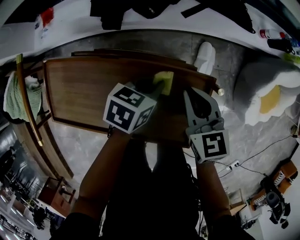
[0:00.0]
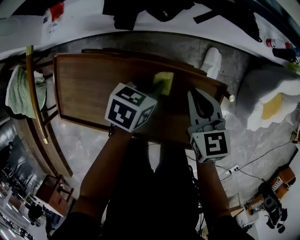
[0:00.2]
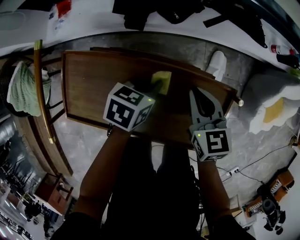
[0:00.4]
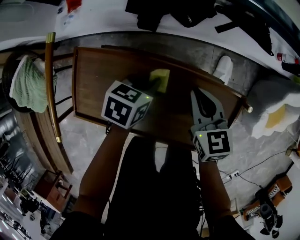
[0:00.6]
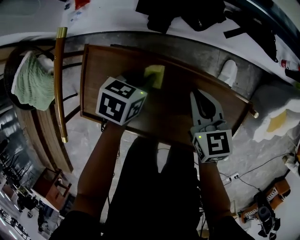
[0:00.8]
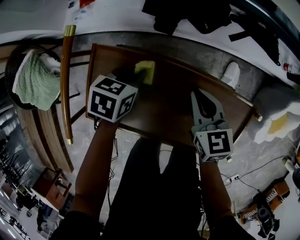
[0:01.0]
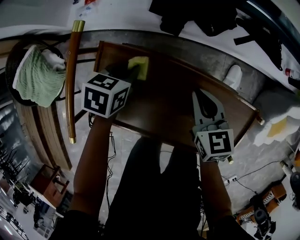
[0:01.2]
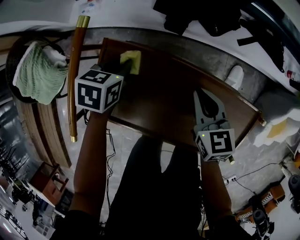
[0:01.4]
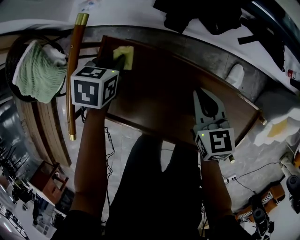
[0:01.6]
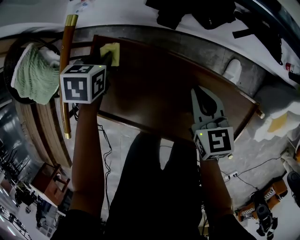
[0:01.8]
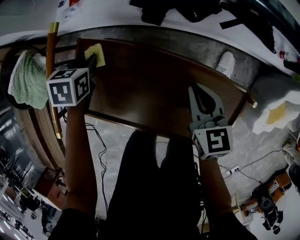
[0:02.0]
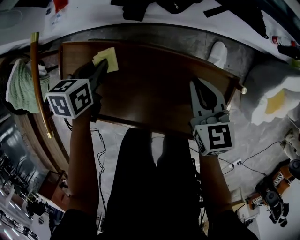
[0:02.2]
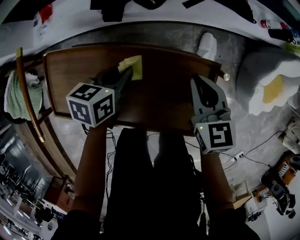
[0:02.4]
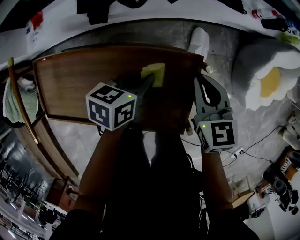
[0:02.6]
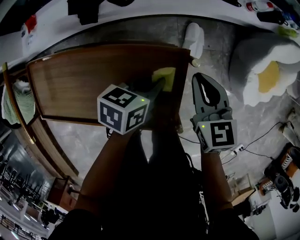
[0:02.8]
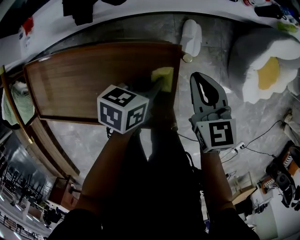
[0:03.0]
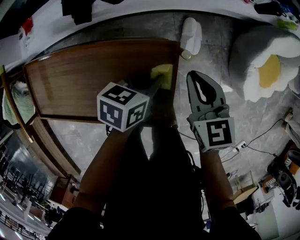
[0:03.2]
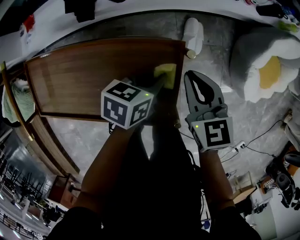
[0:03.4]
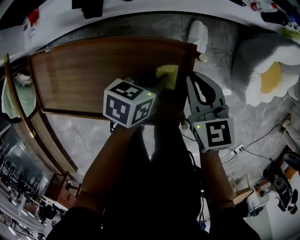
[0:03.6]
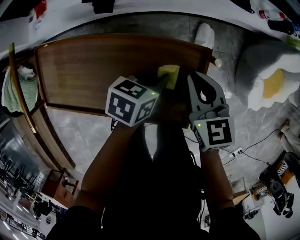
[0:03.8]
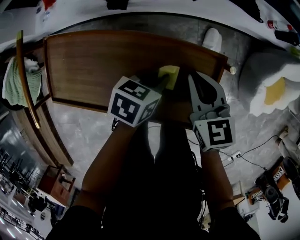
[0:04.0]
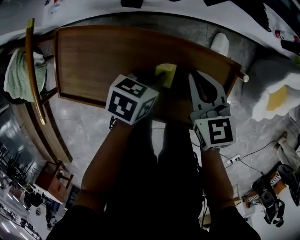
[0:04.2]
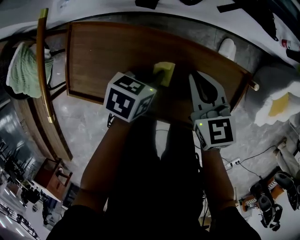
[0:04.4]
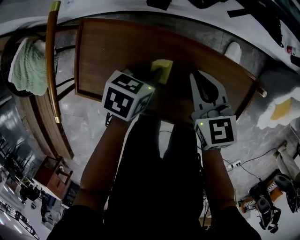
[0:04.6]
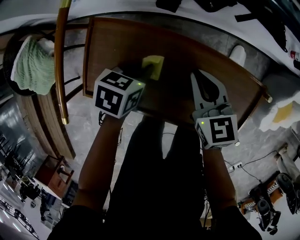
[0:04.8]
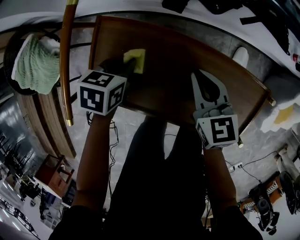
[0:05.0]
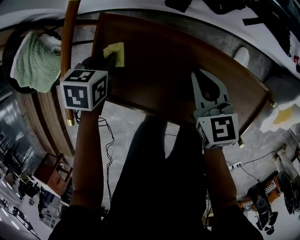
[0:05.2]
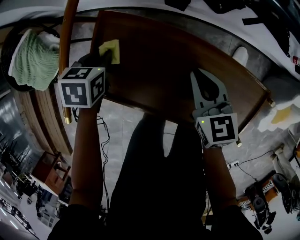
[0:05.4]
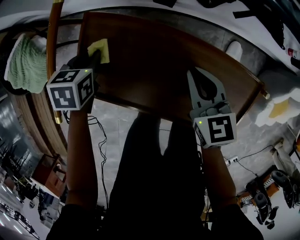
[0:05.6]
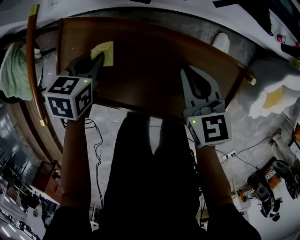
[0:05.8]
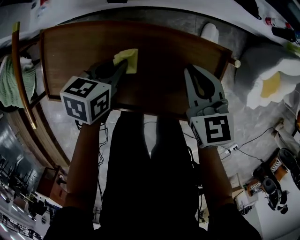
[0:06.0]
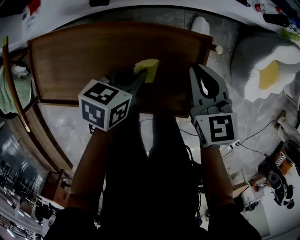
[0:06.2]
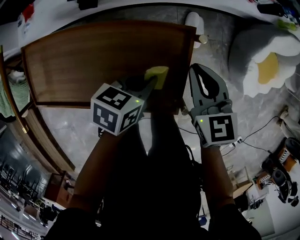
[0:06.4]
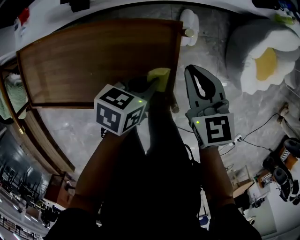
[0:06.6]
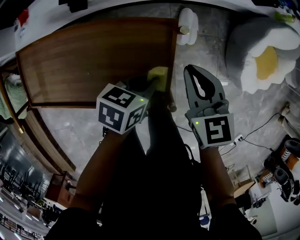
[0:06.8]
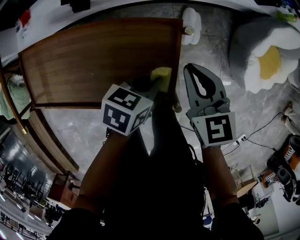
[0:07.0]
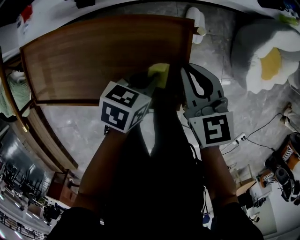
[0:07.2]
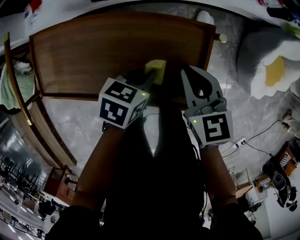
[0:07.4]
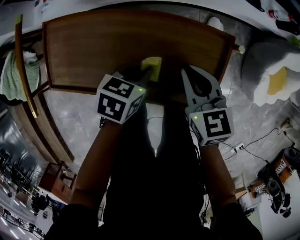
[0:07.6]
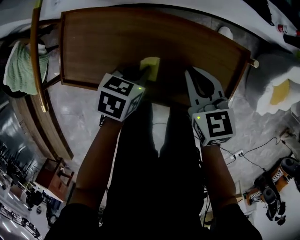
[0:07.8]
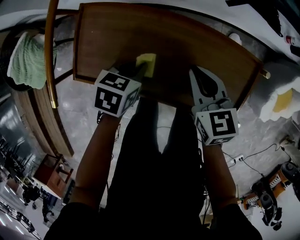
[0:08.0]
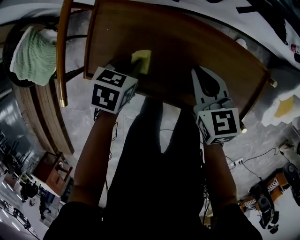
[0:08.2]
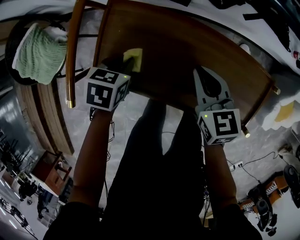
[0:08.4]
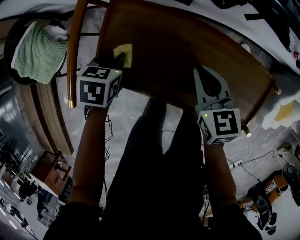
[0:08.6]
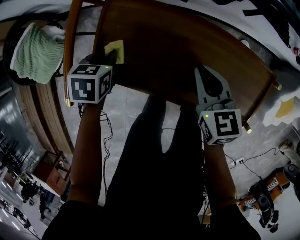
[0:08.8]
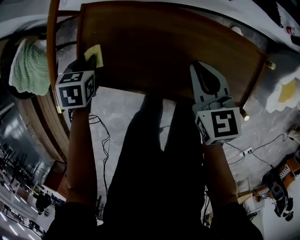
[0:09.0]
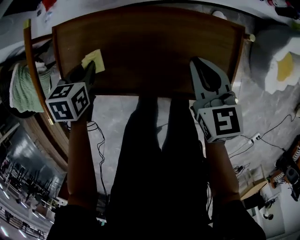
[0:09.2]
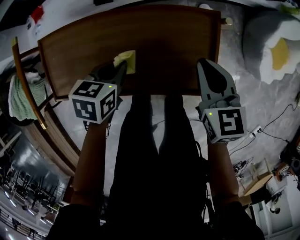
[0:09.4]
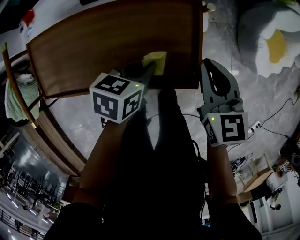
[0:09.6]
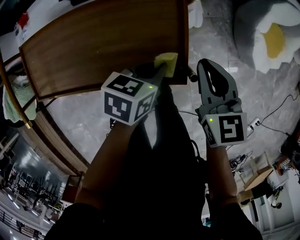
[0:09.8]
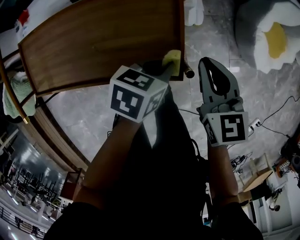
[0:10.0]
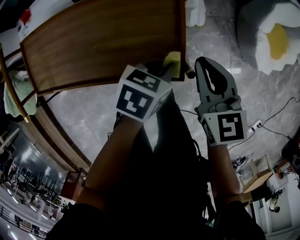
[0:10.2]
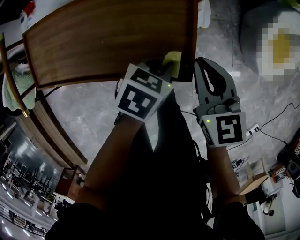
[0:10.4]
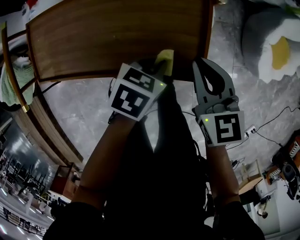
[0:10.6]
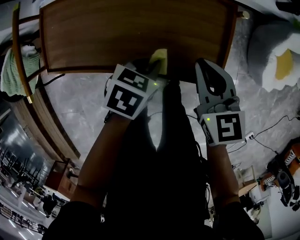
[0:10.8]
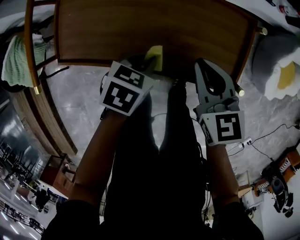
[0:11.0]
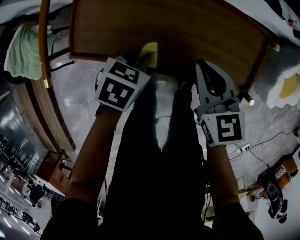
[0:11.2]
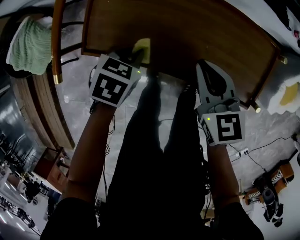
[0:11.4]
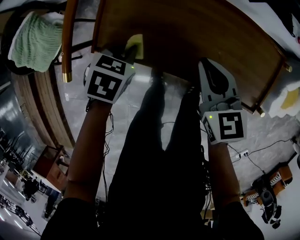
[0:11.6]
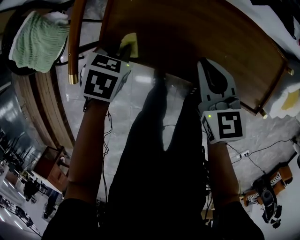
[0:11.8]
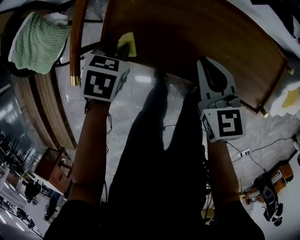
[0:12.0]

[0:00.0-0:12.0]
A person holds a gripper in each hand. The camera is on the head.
0:00.0 to 0:01.6: The right gripper travels to the left by about 20 cm; the left gripper is displaced to the left by approximately 40 cm, and changes its angle by about 30 degrees.
0:01.6 to 0:03.0: The left gripper moves about 50 cm, and swivels roughly 30 degrees. Meanwhile the right gripper changes place by about 35 cm.
0:03.0 to 0:04.4: The grippers both shift to the left by about 25 cm.
0:04.4 to 0:06.0: The right gripper reaches some 10 cm to the left, then returns. The left gripper travels to the left and back again, about 30 cm each way.
0:06.0 to 0:07.6: The left gripper reaches roughly 25 cm to the right, then returns. The right gripper goes to the right and returns, about 15 cm each way.
0:07.6 to 0:09.0: The left gripper changes place by about 35 cm, and turns by roughly 30 degrees; the right gripper ends up about 15 cm from where it was.
0:09.0 to 0:10.4: The left gripper shifts by some 50 cm, and turns by approximately 40 degrees. Meanwhile the right gripper moves some 25 cm.
0:10.4 to 0:12.0: The right gripper moves about 35 cm, while the left gripper changes place by approximately 50 cm, and changes its angle by approximately 30 degrees.

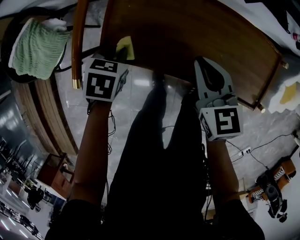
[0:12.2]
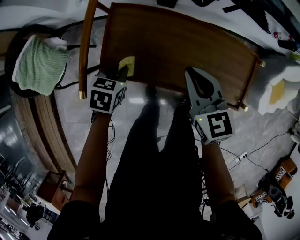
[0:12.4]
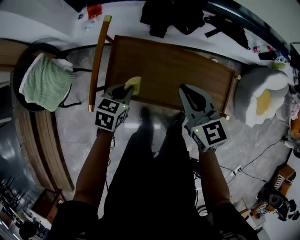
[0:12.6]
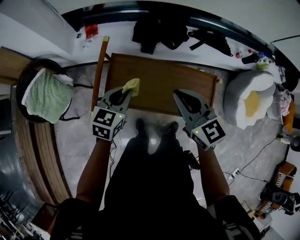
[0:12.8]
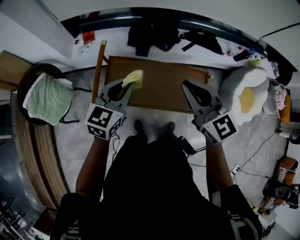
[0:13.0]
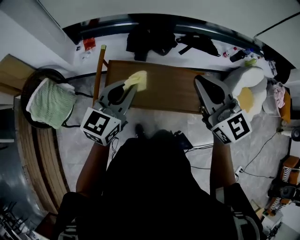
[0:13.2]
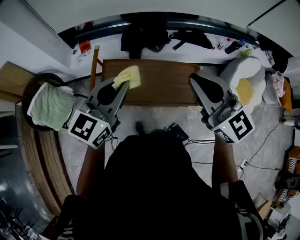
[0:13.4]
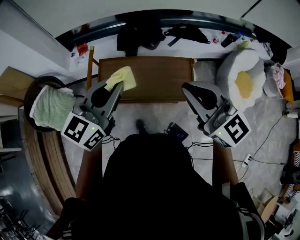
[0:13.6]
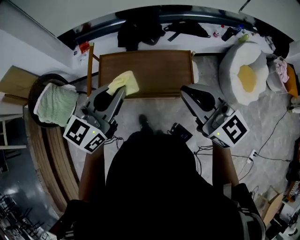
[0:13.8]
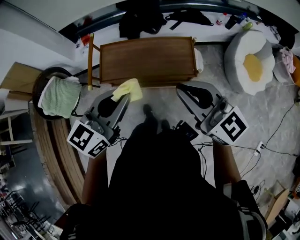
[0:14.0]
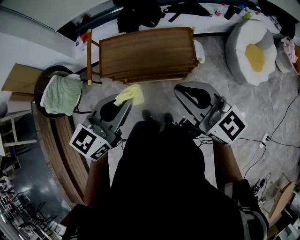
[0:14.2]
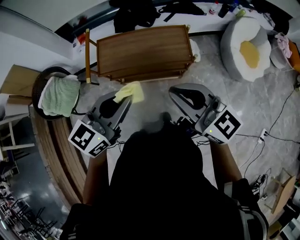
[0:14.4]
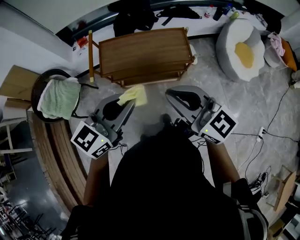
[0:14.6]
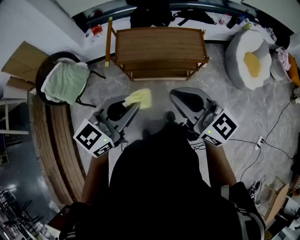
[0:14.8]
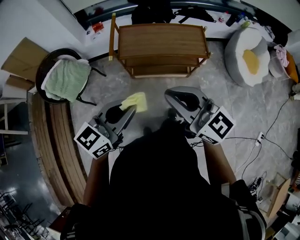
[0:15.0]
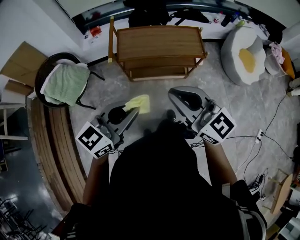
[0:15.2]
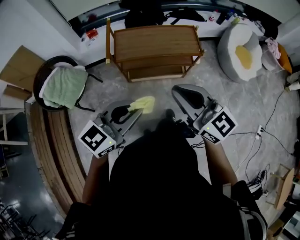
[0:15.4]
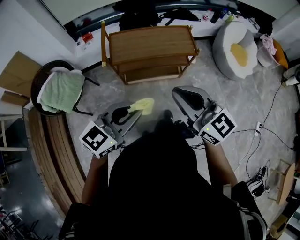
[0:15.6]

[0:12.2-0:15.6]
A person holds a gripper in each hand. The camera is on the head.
0:12.2 to 0:13.8: The right gripper goes some 40 cm upward and backward, and changes its angle by approximately 30 degrees, while the left gripper heads upward, covering some 50 cm, and points its fingers roughly 60 degrees further upward.
0:13.8 to 0:15.6: The right gripper shifts about 30 cm backward and to the left. Meanwhile the left gripper travels backward by about 30 cm, and rotates about 20 degrees.

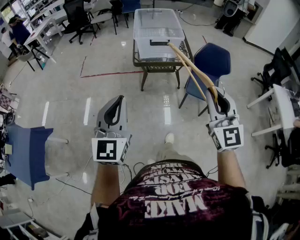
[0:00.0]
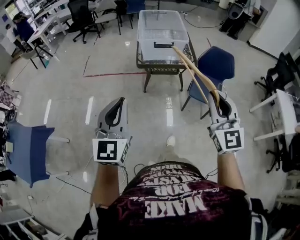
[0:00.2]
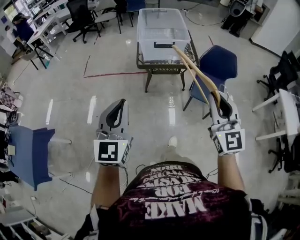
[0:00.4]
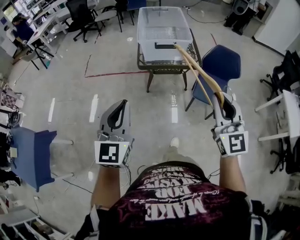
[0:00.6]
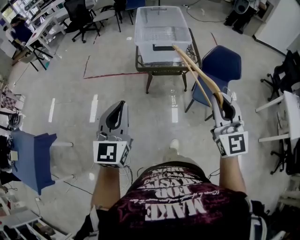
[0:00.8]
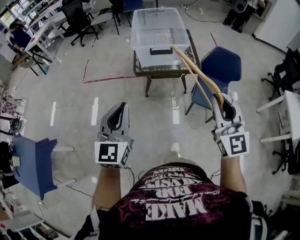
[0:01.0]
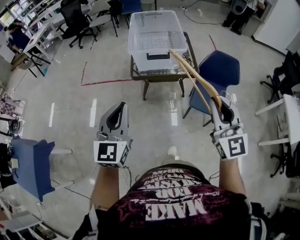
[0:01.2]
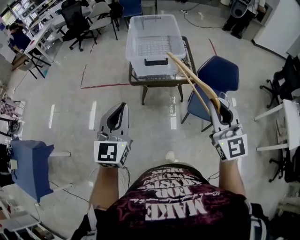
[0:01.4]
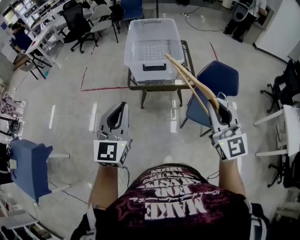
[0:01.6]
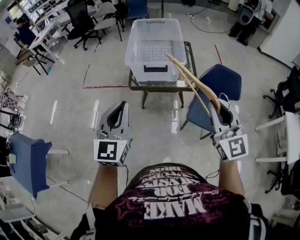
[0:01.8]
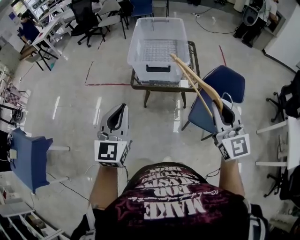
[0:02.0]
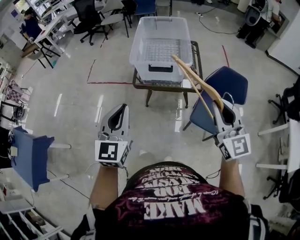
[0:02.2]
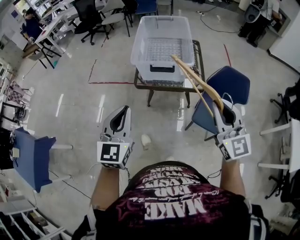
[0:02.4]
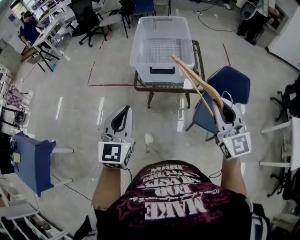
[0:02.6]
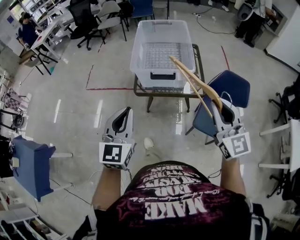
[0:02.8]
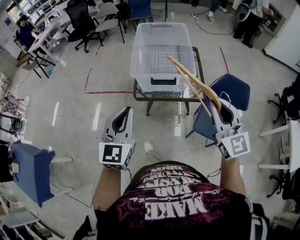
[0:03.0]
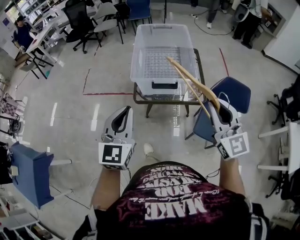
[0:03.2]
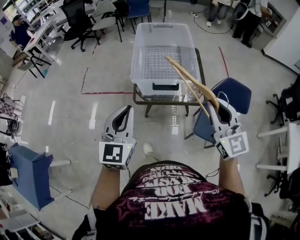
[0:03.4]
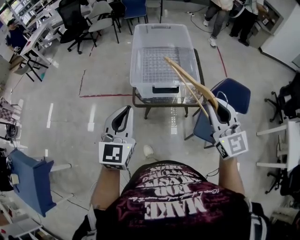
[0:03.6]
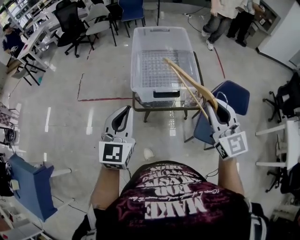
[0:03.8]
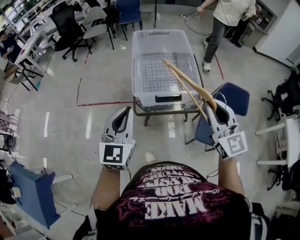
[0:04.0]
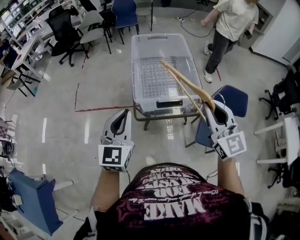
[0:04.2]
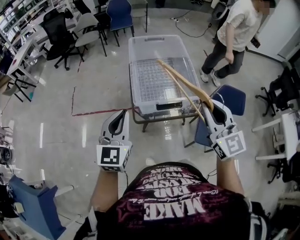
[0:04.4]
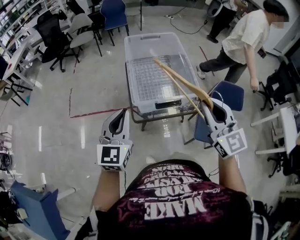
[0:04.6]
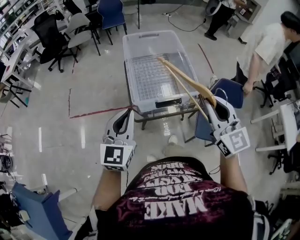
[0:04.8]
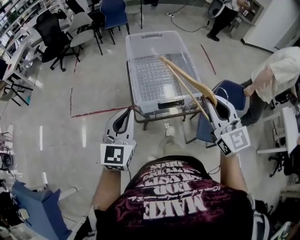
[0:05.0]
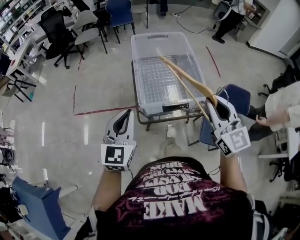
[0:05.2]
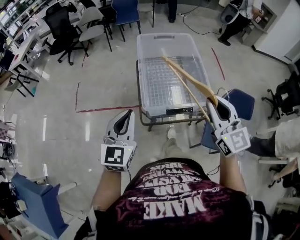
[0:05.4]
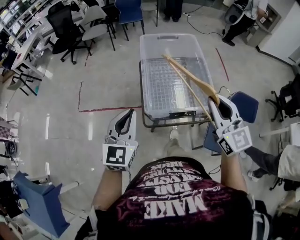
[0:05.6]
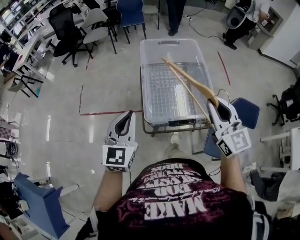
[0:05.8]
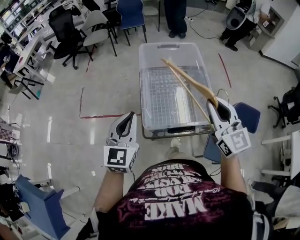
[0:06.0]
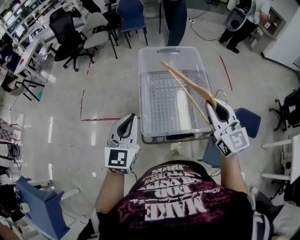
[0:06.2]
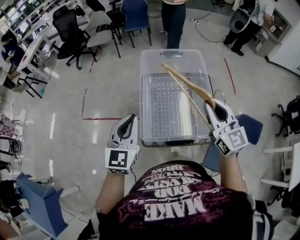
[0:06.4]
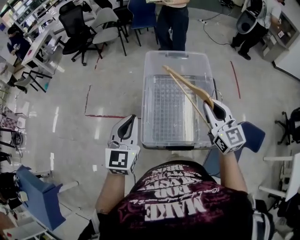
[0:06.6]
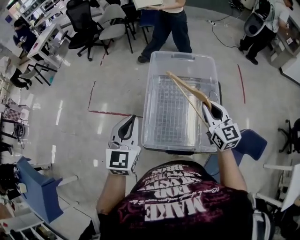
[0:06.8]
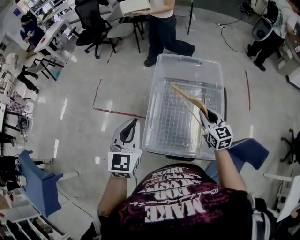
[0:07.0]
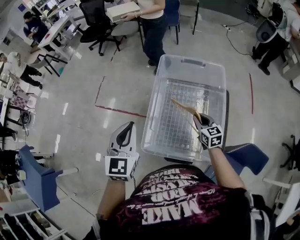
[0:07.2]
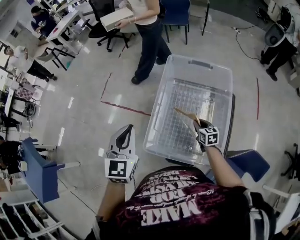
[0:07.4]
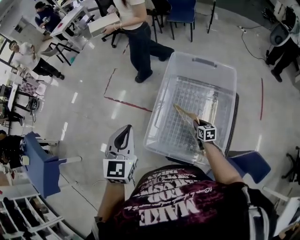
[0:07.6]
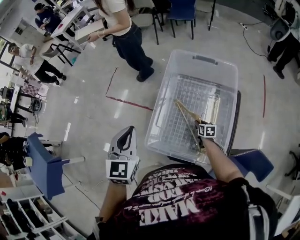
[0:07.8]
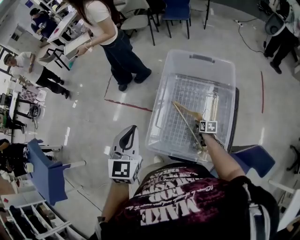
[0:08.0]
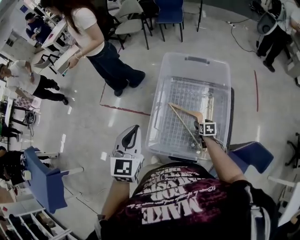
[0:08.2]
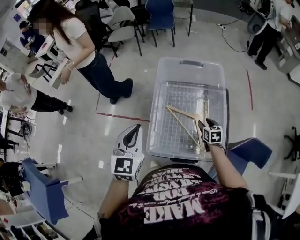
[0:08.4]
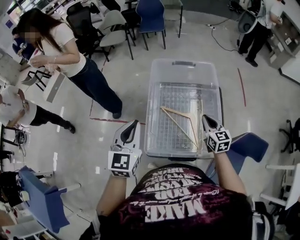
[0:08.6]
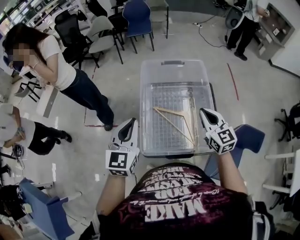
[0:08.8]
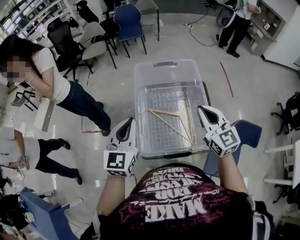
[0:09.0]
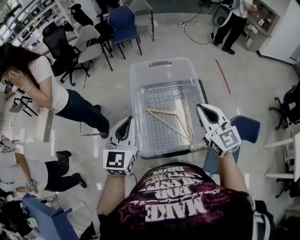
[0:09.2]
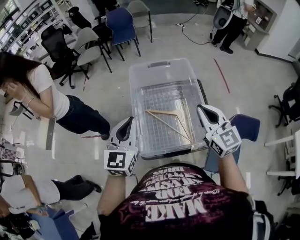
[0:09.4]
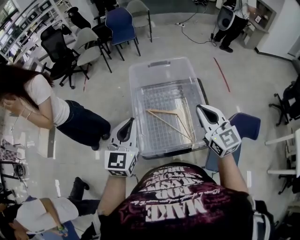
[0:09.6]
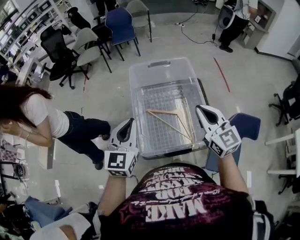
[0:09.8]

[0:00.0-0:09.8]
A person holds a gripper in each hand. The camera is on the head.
0:00.0 to 0:01.4: The right gripper travels forward and to the right by roughly 20 cm. Meanwhile the left gripper shifts about 20 cm forward.
0:01.4 to 0:02.8: Both grippers travel together forward, roughly 10 cm.
0:02.8 to 0:04.2: The right gripper is displaced forward and to the left by approximately 15 cm; the left gripper goes approximately 20 cm forward.
0:04.2 to 0:05.6: The grippers both shift forward by some 10 cm.
0:05.6 to 0:07.0: The left gripper is displaced forward and to the right by about 15 cm; the right gripper goes approximately 30 cm forward and downward, and changes its angle by roughly 20 degrees.
0:07.0 to 0:08.4: The right gripper shifts roughly 20 cm downward, changes its angle by roughly 30 degrees, and opens its fingers.
0:08.4 to 0:09.8: The right gripper travels upward by about 35 cm, tips its fingers upward by roughly 40 degrees, and closes up.
